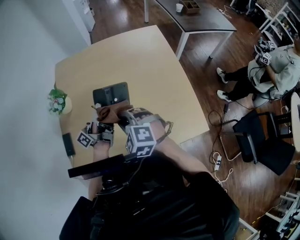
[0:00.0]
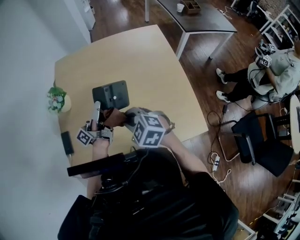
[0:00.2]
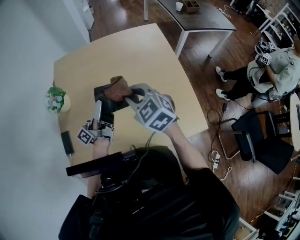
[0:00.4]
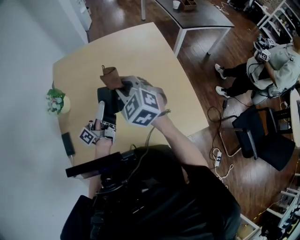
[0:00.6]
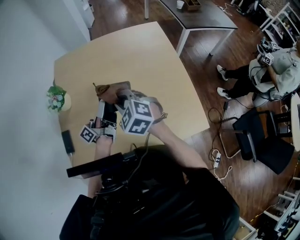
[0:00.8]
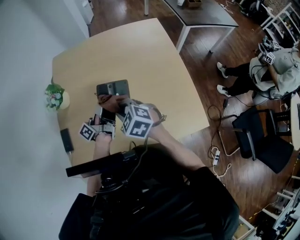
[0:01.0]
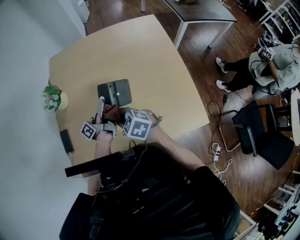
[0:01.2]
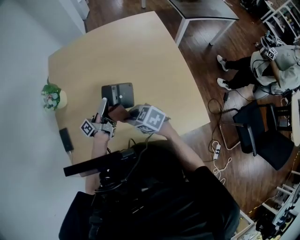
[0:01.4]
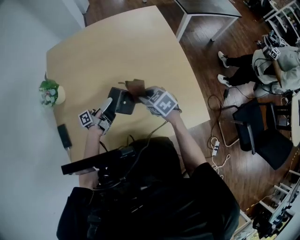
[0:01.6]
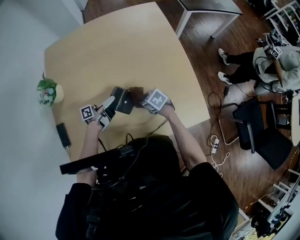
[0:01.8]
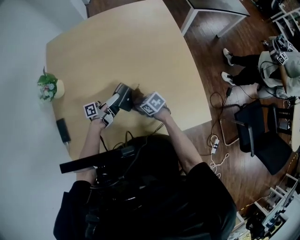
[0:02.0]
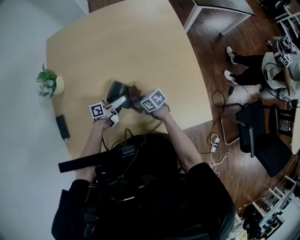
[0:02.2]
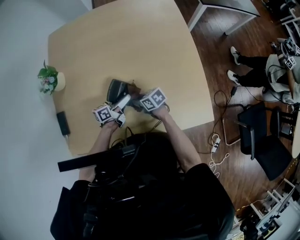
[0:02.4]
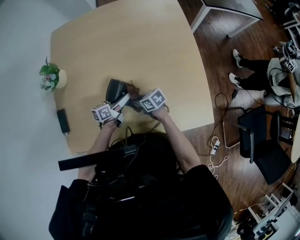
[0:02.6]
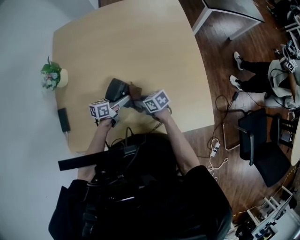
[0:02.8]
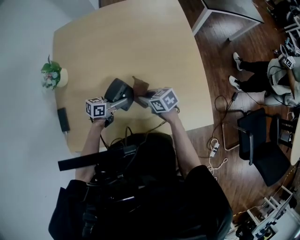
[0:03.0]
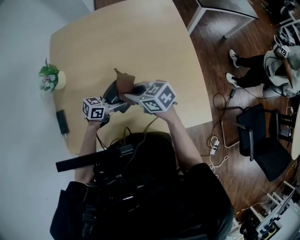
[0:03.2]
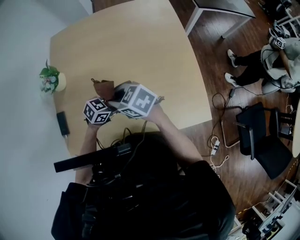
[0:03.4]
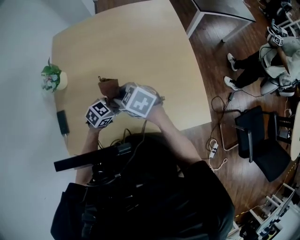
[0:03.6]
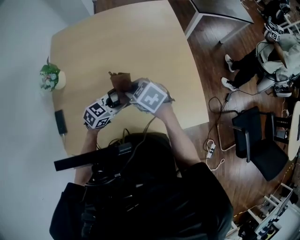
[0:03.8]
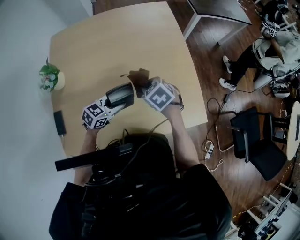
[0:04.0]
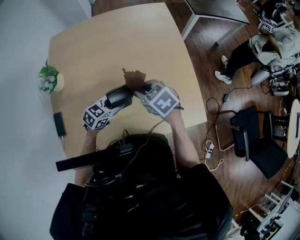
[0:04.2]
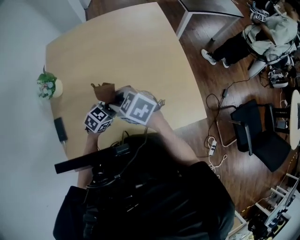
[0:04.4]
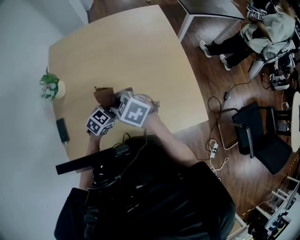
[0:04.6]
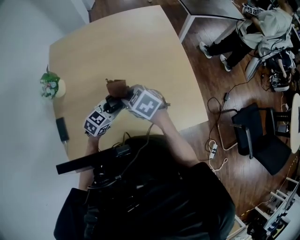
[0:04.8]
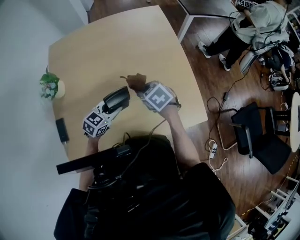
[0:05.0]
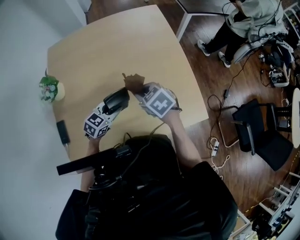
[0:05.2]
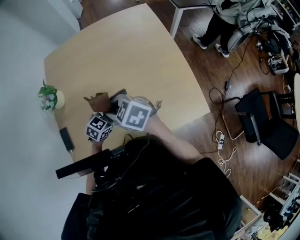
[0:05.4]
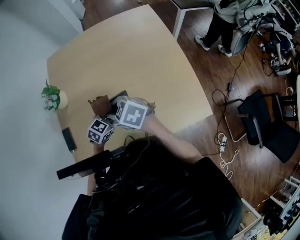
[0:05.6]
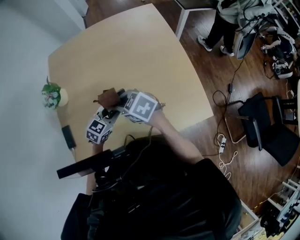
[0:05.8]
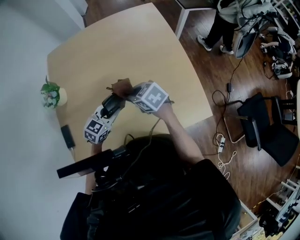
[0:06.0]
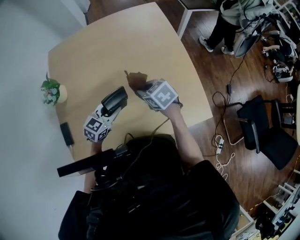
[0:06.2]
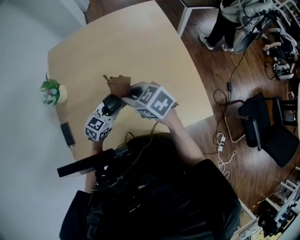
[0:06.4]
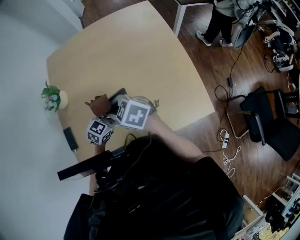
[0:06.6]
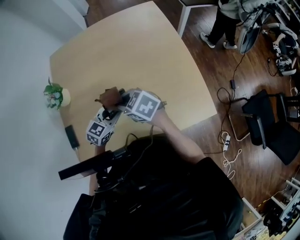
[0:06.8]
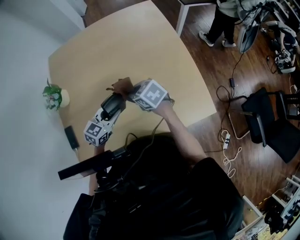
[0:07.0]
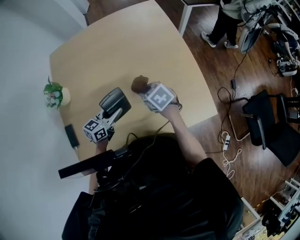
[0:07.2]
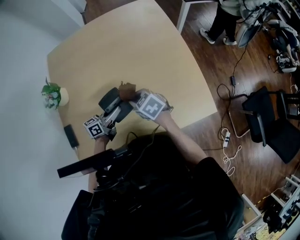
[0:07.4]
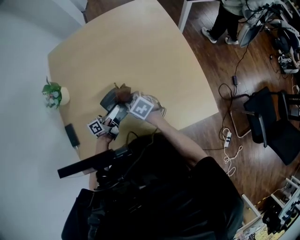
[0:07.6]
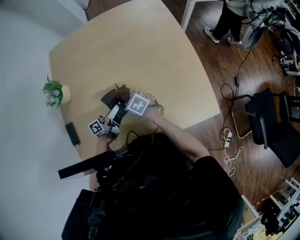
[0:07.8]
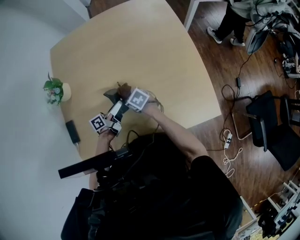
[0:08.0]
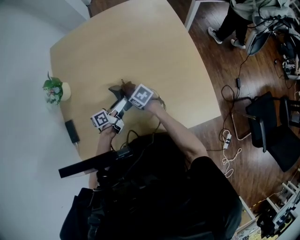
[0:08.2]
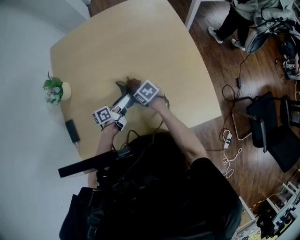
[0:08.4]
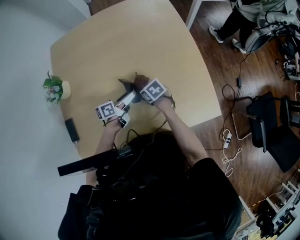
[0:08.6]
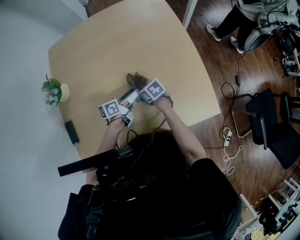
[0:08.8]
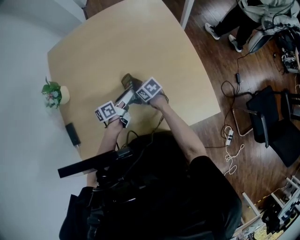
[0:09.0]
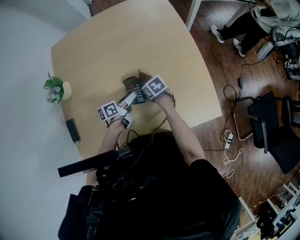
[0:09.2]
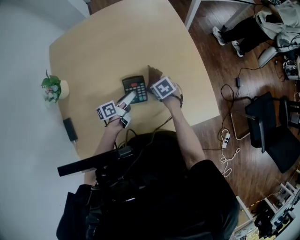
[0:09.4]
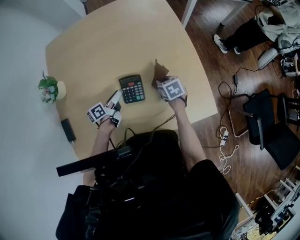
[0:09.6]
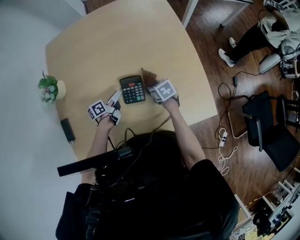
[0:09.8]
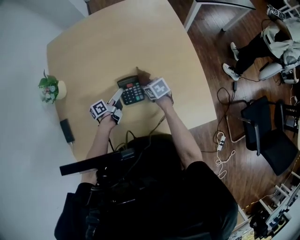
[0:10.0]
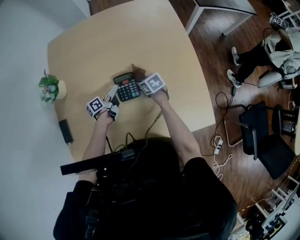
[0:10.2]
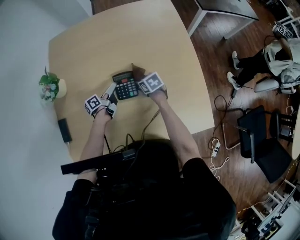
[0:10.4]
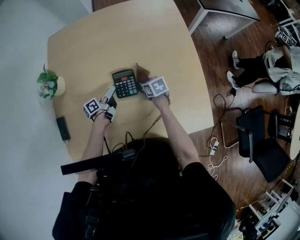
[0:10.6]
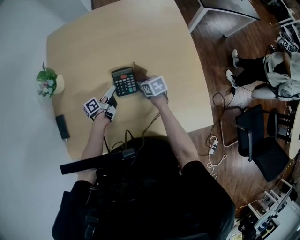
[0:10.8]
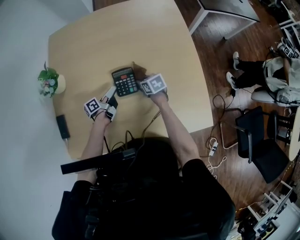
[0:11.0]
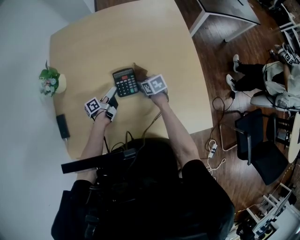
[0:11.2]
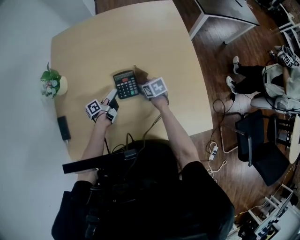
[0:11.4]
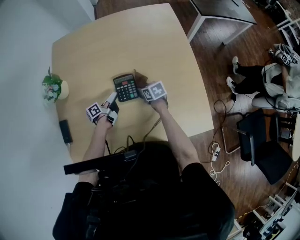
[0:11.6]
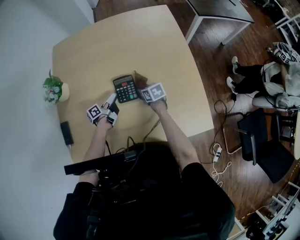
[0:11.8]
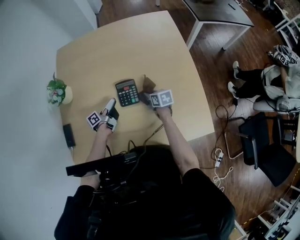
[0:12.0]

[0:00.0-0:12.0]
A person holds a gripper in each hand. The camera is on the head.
0:00.0 to 0:01.6: The right gripper moves downward, approximately 15 cm, and twists roughly 50 degrees clockwise, seen from behind.
0:01.6 to 0:03.0: The right gripper travels downward by some 5 cm, and rotates about 20 degrees.
0:03.0 to 0:04.4: The right gripper swings up and down, approximately 20 cm each way, with 2 reversals, and turns by approximately 30 degrees.
0:04.4 to 0:06.0: The right gripper moves up and down over approximately 10 cm, changing direction 2 times.
0:06.0 to 0:07.6: The right gripper heads downward, covering about 10 cm.
0:07.6 to 0:09.0: The right gripper heads downward, covering some 10 cm, and rotates about 20 degrees.

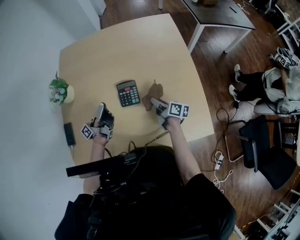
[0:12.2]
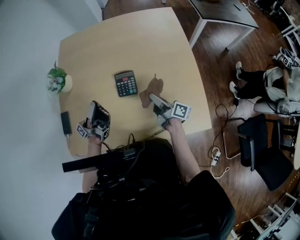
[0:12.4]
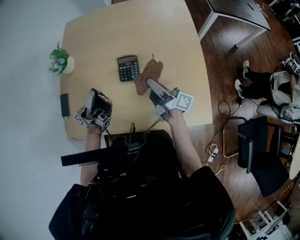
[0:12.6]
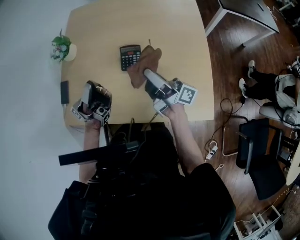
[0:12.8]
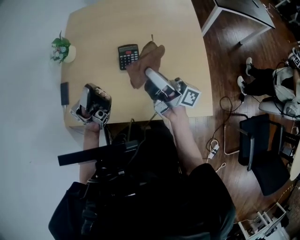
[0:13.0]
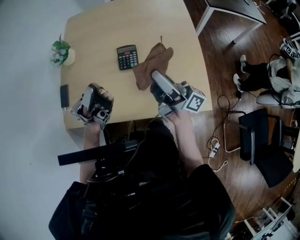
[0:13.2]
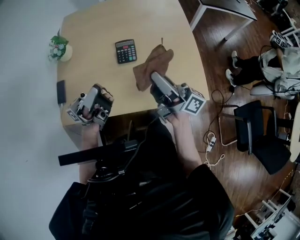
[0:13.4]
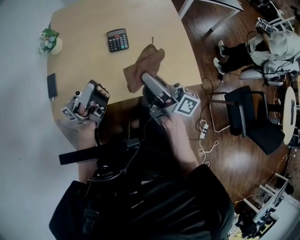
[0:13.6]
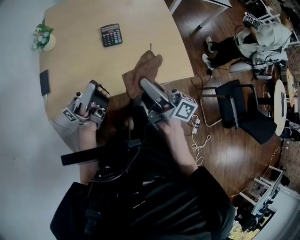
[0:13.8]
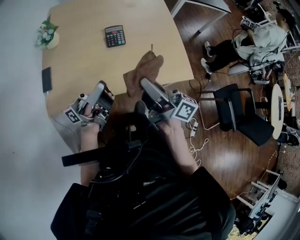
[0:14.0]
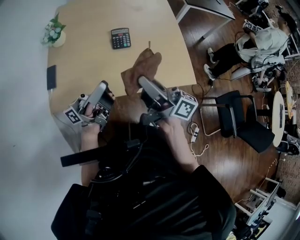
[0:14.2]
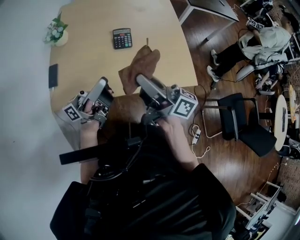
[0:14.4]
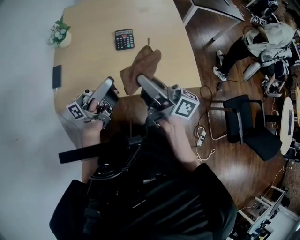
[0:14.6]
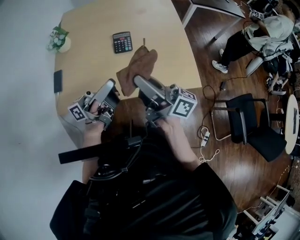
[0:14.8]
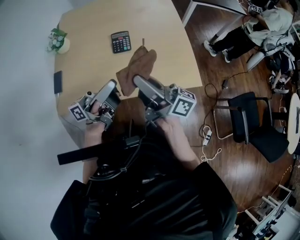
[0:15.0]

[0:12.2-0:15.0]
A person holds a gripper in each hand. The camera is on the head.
0:12.2 to 0:13.6: The right gripper goes about 30 cm upward, and tips its fingers upward by approximately 40 degrees.

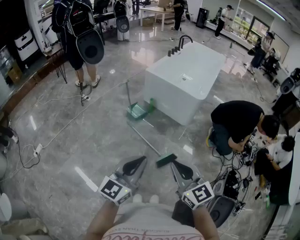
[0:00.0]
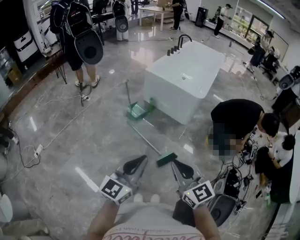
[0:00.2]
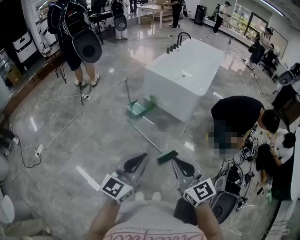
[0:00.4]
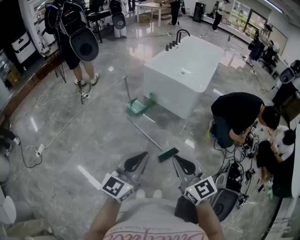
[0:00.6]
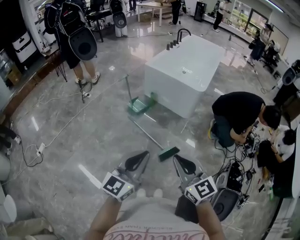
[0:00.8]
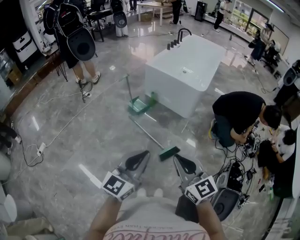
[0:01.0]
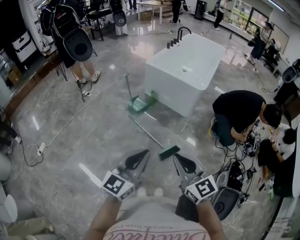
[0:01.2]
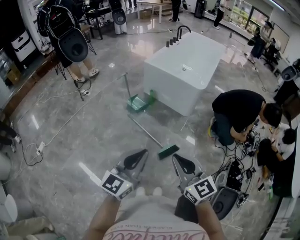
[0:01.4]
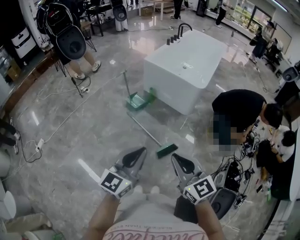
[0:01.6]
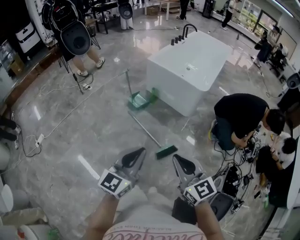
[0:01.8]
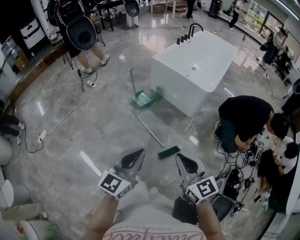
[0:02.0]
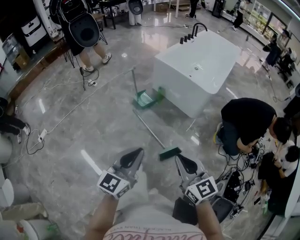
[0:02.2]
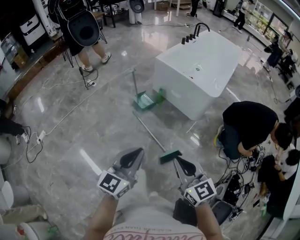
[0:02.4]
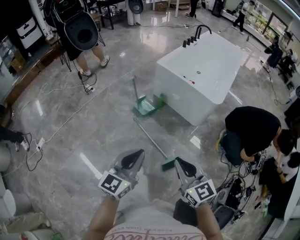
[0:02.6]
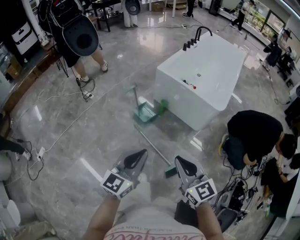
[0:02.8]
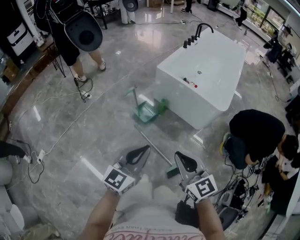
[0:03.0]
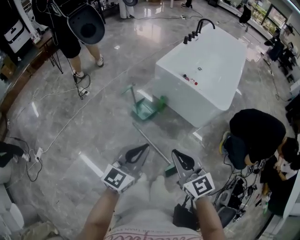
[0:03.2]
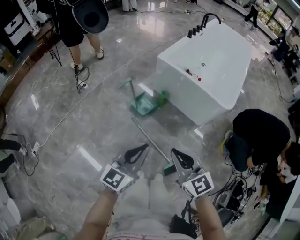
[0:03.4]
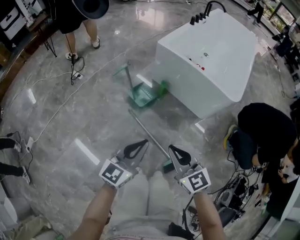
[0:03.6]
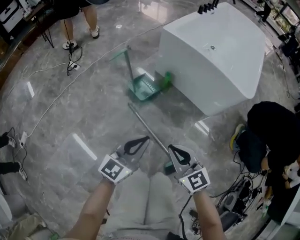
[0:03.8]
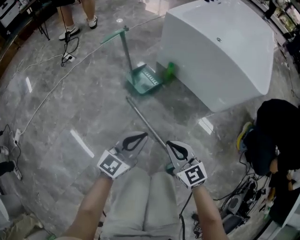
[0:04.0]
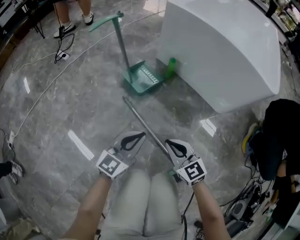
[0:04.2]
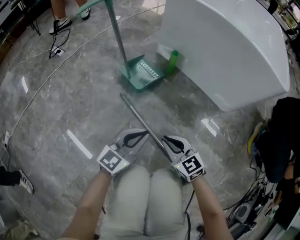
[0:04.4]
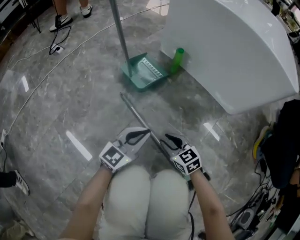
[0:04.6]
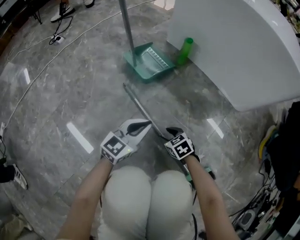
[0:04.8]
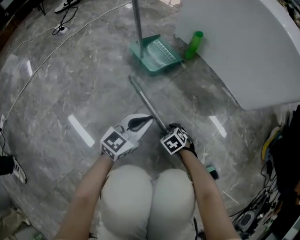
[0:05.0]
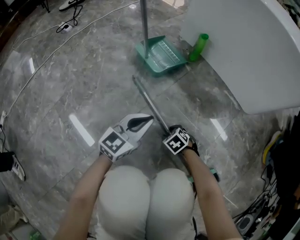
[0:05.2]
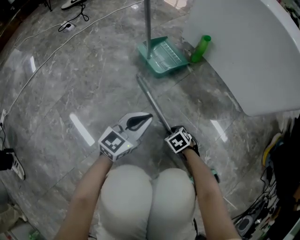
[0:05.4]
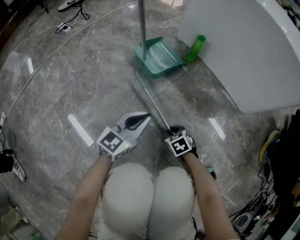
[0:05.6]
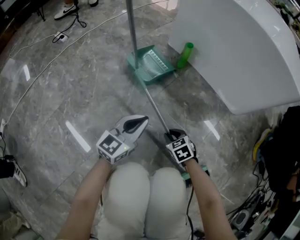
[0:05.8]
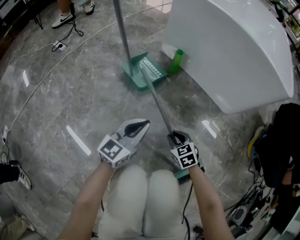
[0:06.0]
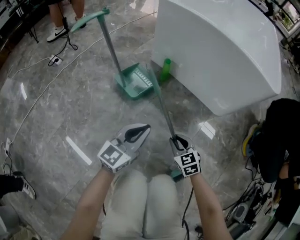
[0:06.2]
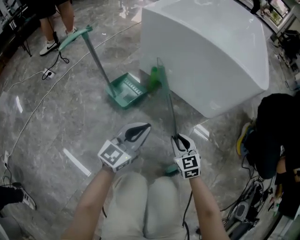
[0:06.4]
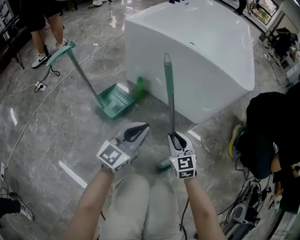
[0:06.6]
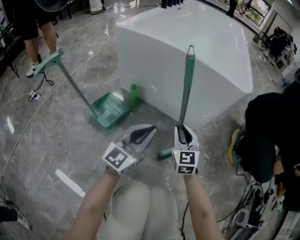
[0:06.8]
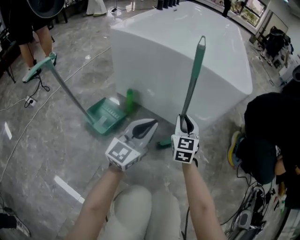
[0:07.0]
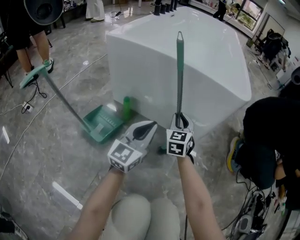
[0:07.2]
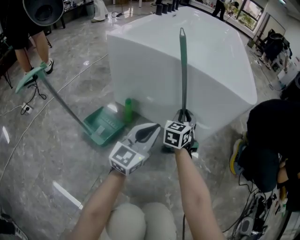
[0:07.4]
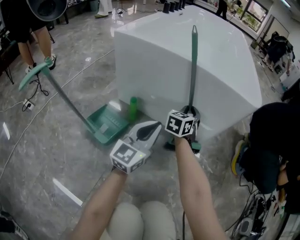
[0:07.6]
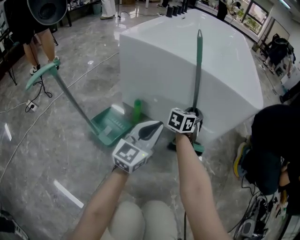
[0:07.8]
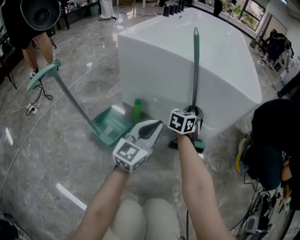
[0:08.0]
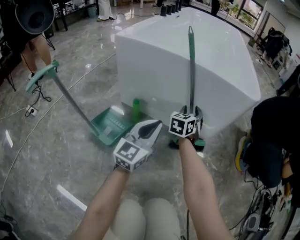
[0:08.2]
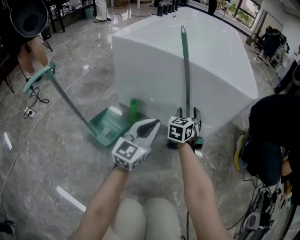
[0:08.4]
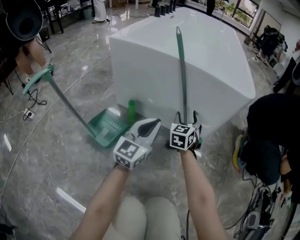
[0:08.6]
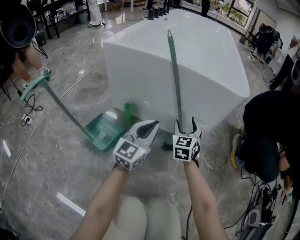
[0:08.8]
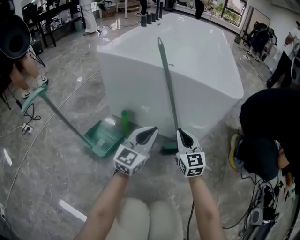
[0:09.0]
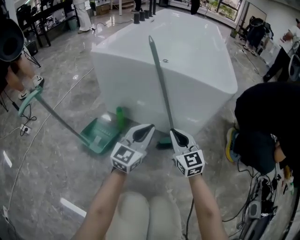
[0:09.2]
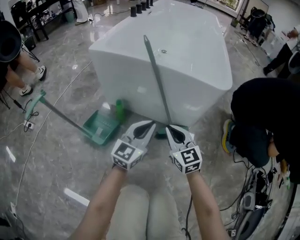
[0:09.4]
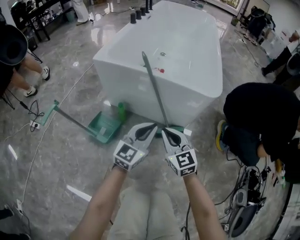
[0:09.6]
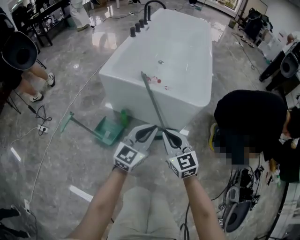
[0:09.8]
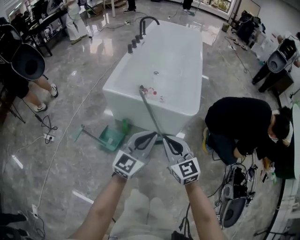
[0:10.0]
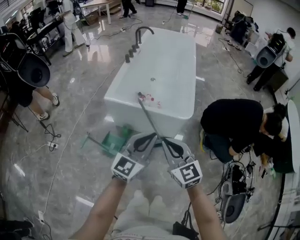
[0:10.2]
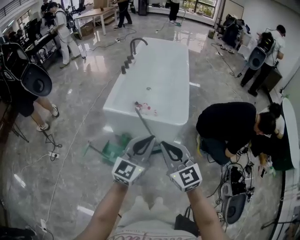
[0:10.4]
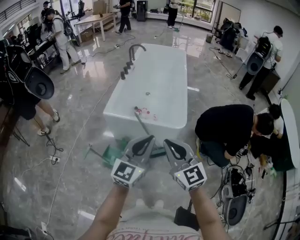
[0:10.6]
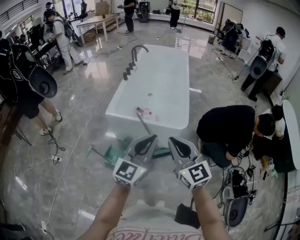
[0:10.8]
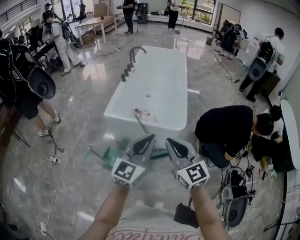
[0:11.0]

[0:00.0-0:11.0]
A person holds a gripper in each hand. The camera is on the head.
0:00.0 to 0:01.6: The grippers make only small movements.
0:01.6 to 0:03.2: The grippers both shift forward by some 25 cm.
0:03.2 to 0:04.8: Both grippers move downward, about 70 cm. The right gripper tilts its fingers some 40 degrees downward, and opens its fingers.
0:04.8 to 0:06.2: The two grippers go some 15 cm upward. The right gripper changes its angle by roughly 30 degrees, and closes up.
0:06.2 to 0:07.8: The left gripper ends up some 25 cm from where it was; the right gripper moves some 40 cm, and turns by roughly 70 degrees.
0:07.8 to 0:09.4: The right gripper travels backward and upward by approximately 20 cm, changes its angle by approximately 50 degrees, and opens and closes again; the left gripper moves to the right, approximately 5 cm.
0:09.4 to 0:11.0: Both grippers travel together upward, about 50 cm.
